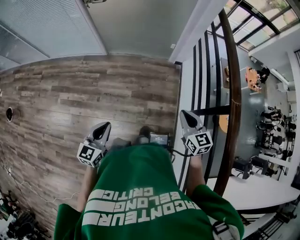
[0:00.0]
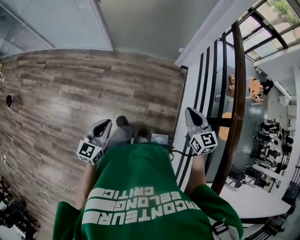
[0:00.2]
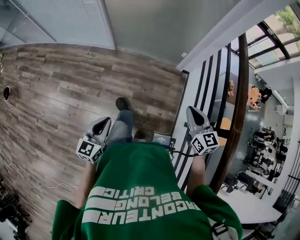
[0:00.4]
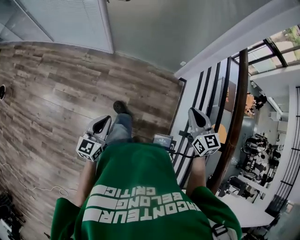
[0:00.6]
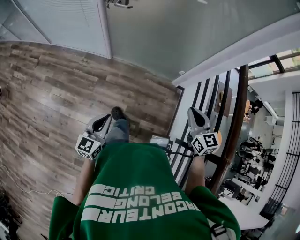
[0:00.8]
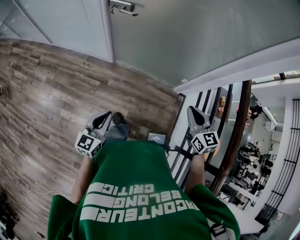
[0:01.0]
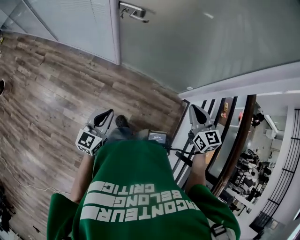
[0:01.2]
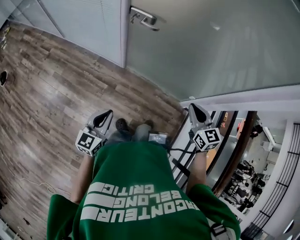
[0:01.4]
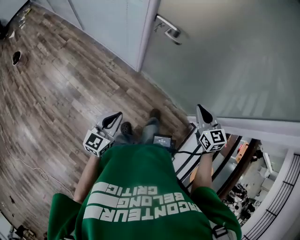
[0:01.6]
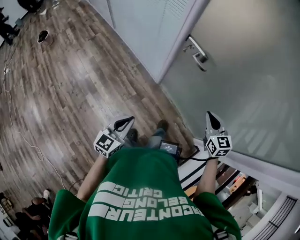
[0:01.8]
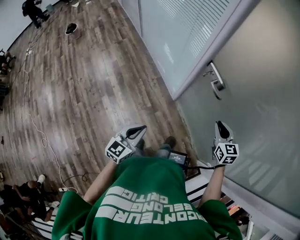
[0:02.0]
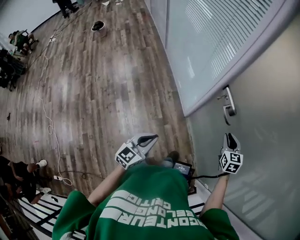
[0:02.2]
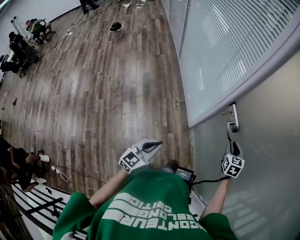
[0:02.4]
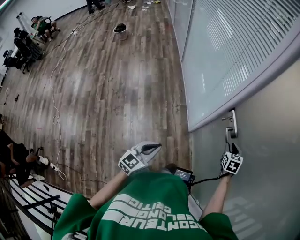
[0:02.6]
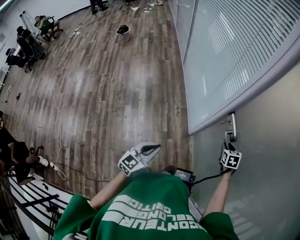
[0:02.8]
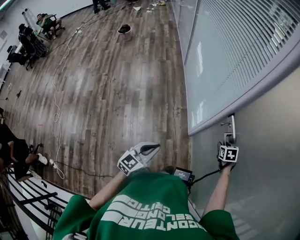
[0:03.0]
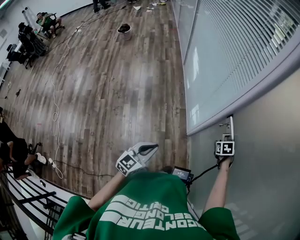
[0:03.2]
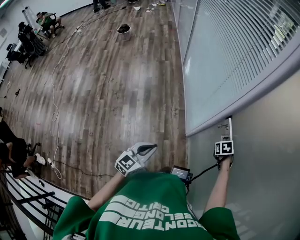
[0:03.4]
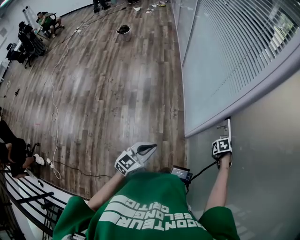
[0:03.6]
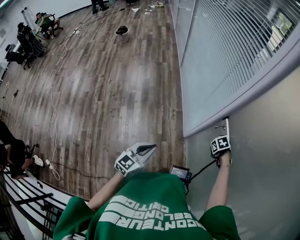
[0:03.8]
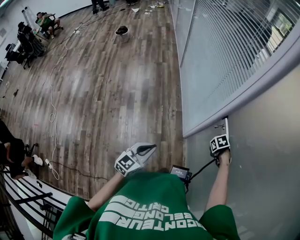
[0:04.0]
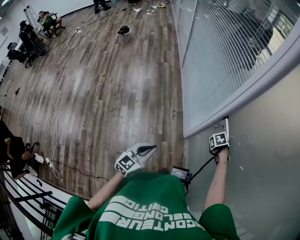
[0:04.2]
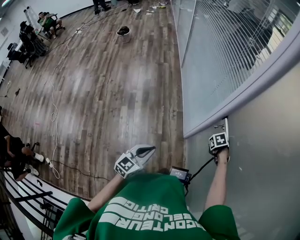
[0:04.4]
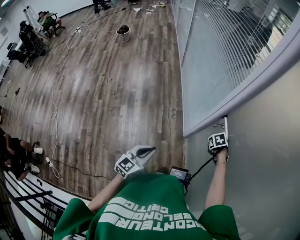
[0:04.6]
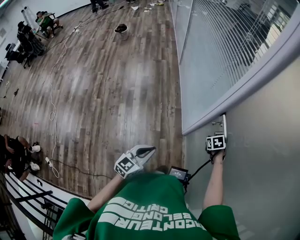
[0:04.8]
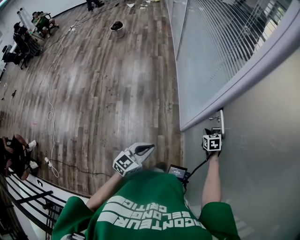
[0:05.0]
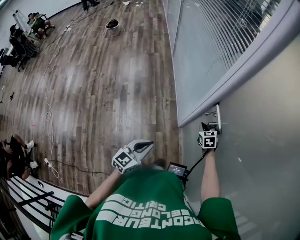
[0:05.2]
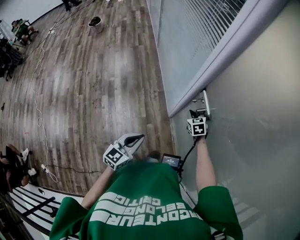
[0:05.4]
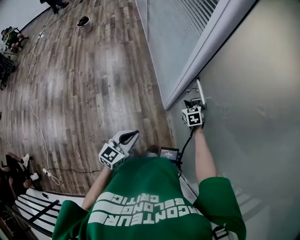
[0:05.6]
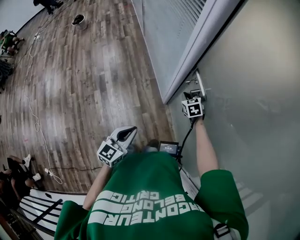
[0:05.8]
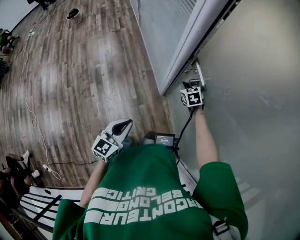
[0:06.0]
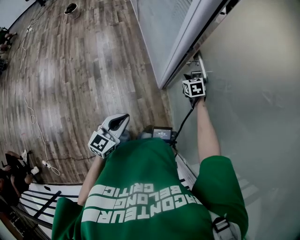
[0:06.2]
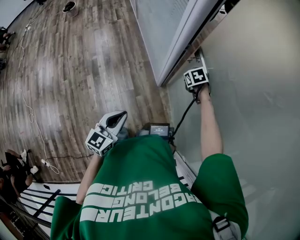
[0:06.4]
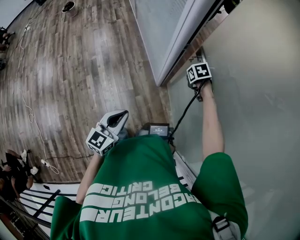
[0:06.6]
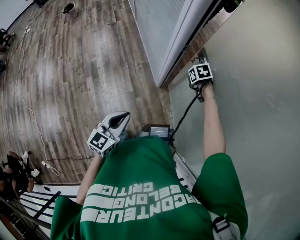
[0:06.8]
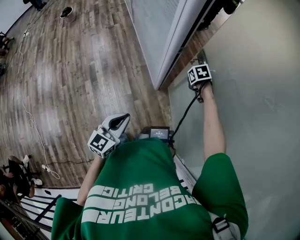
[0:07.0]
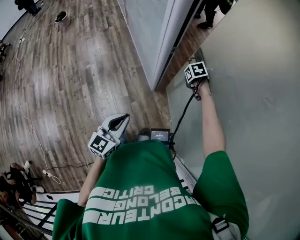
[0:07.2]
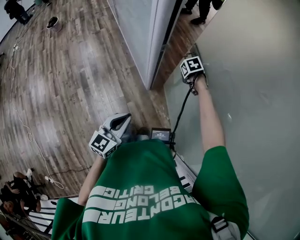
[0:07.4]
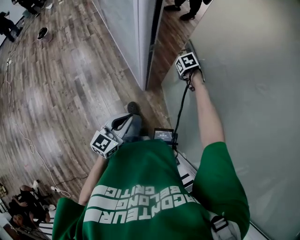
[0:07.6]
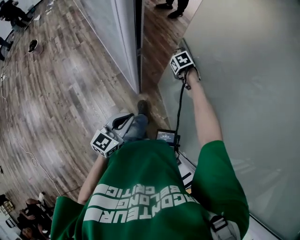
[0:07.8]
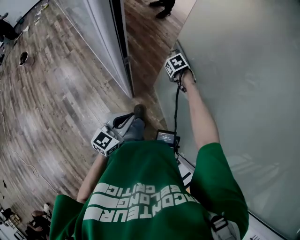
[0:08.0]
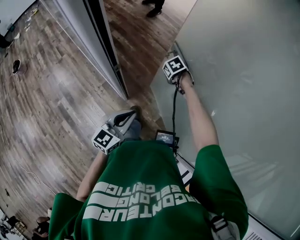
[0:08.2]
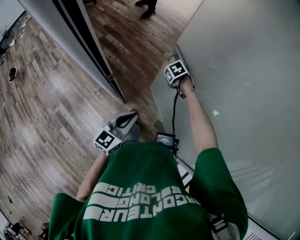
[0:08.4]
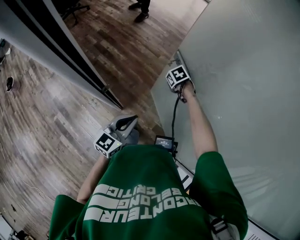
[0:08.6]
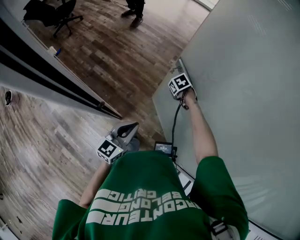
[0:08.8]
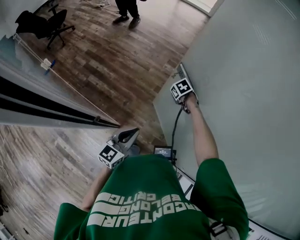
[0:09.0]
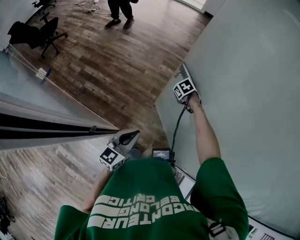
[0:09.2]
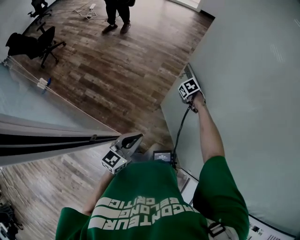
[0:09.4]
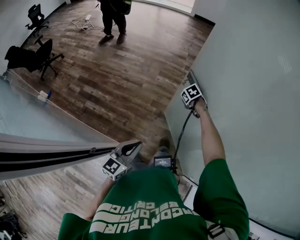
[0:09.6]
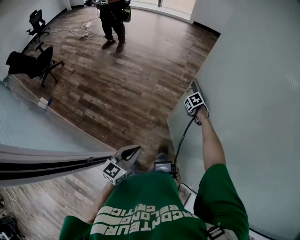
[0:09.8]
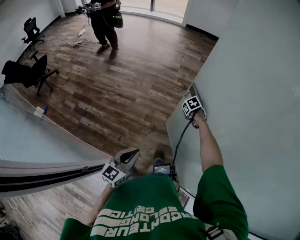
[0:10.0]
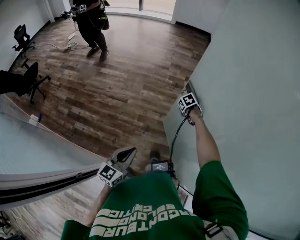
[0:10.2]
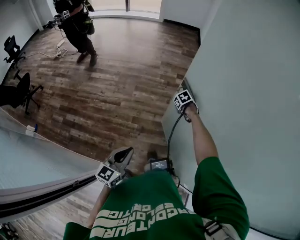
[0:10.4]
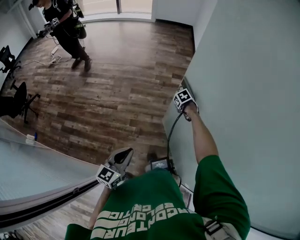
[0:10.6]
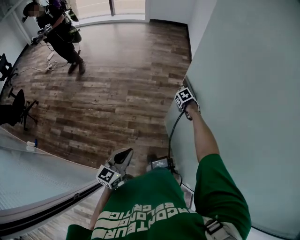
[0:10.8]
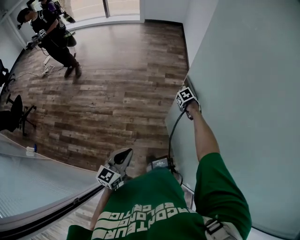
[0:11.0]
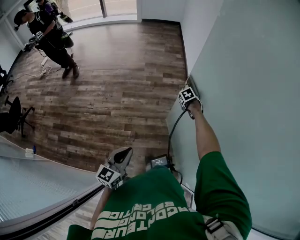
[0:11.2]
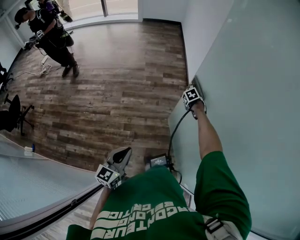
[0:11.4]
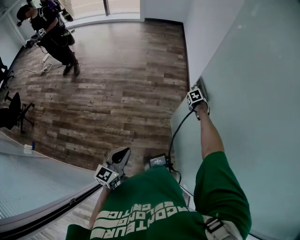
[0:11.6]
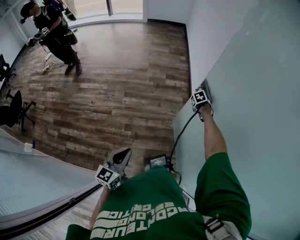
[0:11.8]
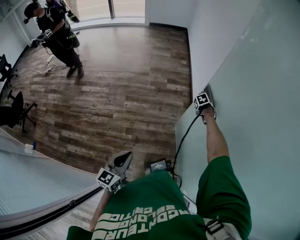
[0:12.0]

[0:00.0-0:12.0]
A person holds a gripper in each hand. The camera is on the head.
0:00.0 to 0:01.6: The left gripper shifts by about 40 cm, and rotates about 30 degrees. Meanwhile the right gripper shifts by approximately 60 cm, and turns by some 30 degrees.
0:01.6 to 0:03.0: The left gripper changes place by approximately 10 cm, and turns by approximately 30 degrees. The right gripper shifts by some 40 cm, tilts its fingers about 40 degrees downward, and opens.
0:03.0 to 0:04.4: The right gripper changes place by roughly 5 cm, changes its angle by some 20 degrees, and closes up.
0:04.4 to 0:06.0: The left gripper shifts by approximately 5 cm, while the right gripper moves about 5 cm, and points its fingers about 30 degrees further upward.
0:06.0 to 0:07.6: The right gripper ends up approximately 15 cm from where it was, and changes its angle by about 30 degrees. The left gripper ends up about 10 cm from where it was.
0:07.6 to 0:09.0: The left gripper shifts by about 25 cm, and changes its angle by some 30 degrees. The right gripper changes place by some 25 cm, and turns by roughly 20 degrees.
0:09.0 to 0:10.4: The right gripper shifts by some 30 cm, and rotates approximately 30 degrees; the left gripper shifts by about 20 cm.
0:10.4 to 0:12.0: The left gripper moves about 10 cm, while the right gripper shifts by about 25 cm, and changes its angle by about 20 degrees.

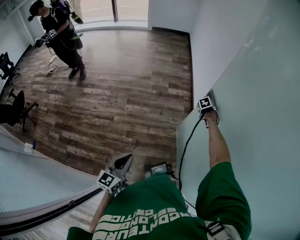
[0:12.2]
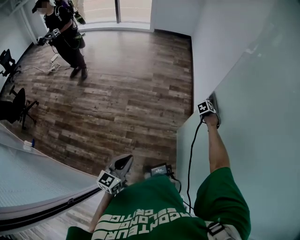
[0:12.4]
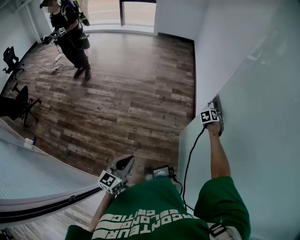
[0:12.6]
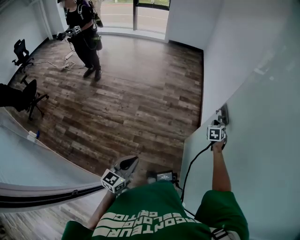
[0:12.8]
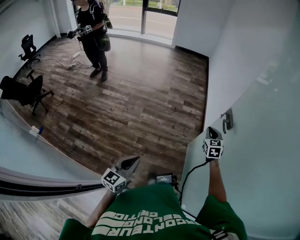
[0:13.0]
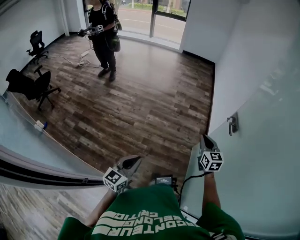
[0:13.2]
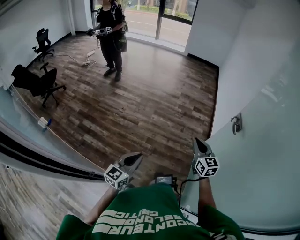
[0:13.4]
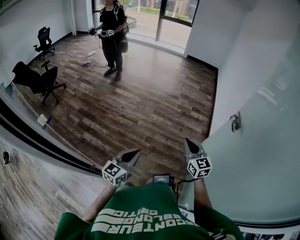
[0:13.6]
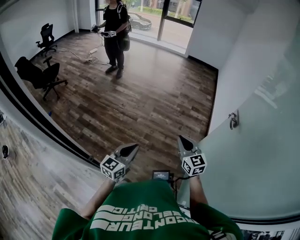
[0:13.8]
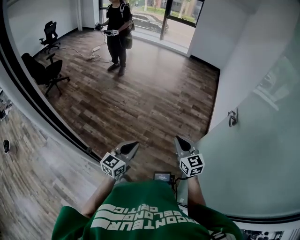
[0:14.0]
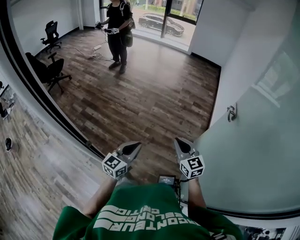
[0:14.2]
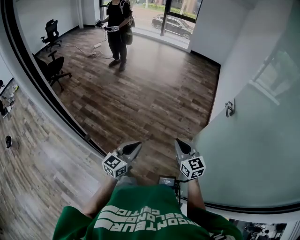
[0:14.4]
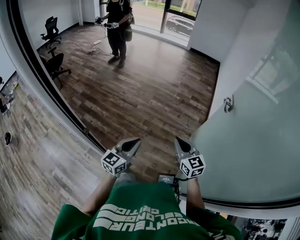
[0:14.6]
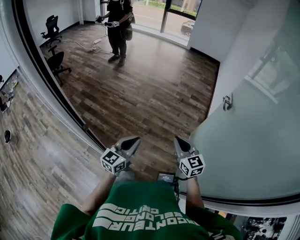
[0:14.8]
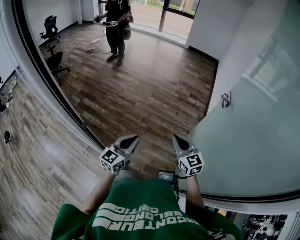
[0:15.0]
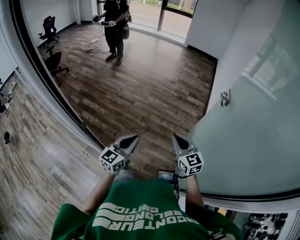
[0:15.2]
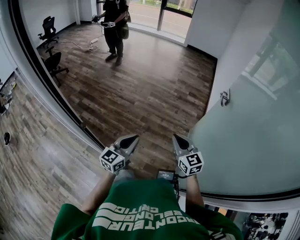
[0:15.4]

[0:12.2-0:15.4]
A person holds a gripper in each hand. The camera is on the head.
0:12.2 to 0:13.8: The left gripper ends up approximately 20 cm from where it was; the right gripper moves some 60 cm, angles its fingers upward, by about 70 degrees, and opens, then closes again.
0:13.8 to 0:15.4: The two grippers go roughly 15 cm backward and to the right.

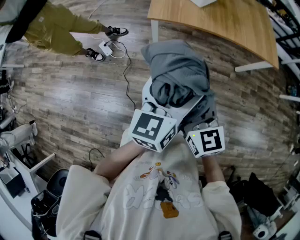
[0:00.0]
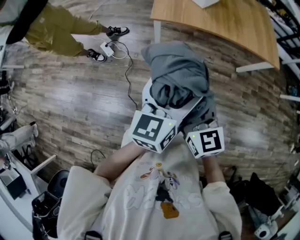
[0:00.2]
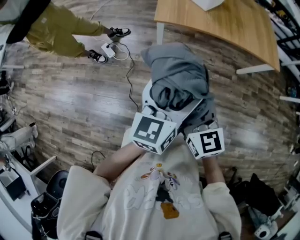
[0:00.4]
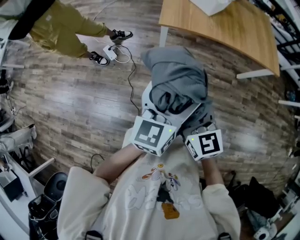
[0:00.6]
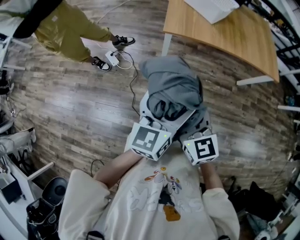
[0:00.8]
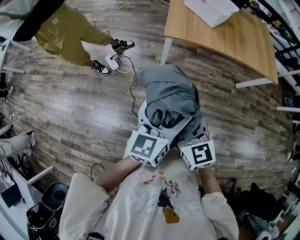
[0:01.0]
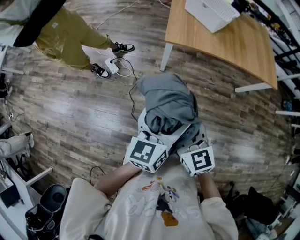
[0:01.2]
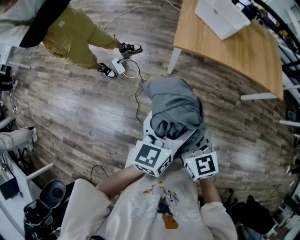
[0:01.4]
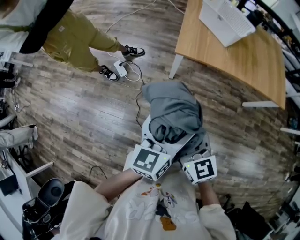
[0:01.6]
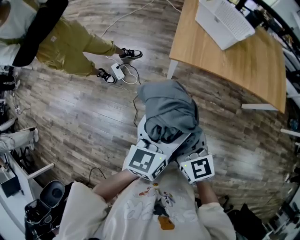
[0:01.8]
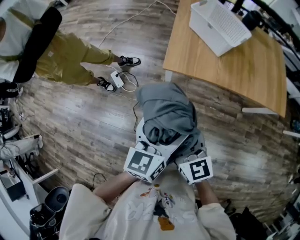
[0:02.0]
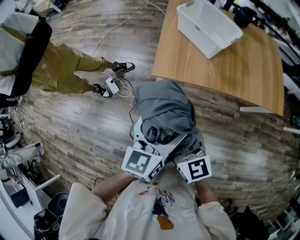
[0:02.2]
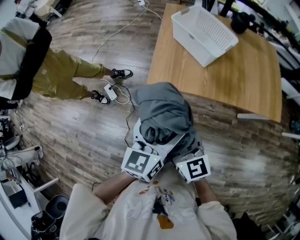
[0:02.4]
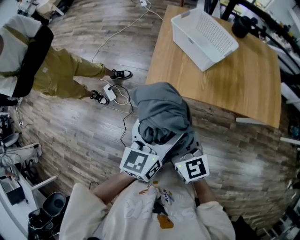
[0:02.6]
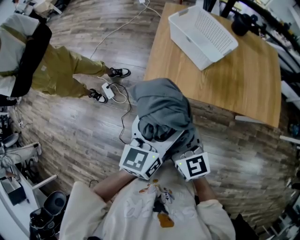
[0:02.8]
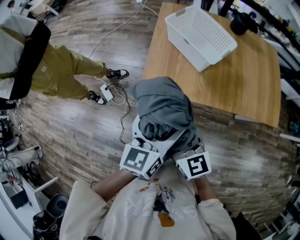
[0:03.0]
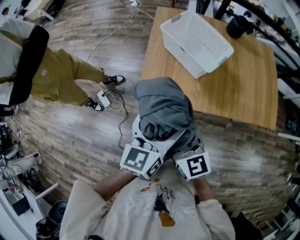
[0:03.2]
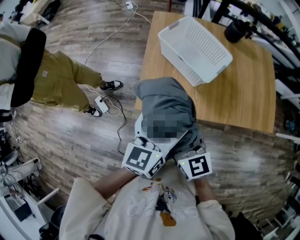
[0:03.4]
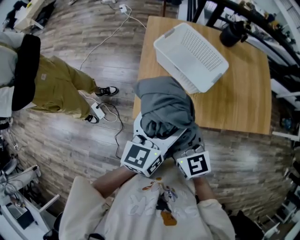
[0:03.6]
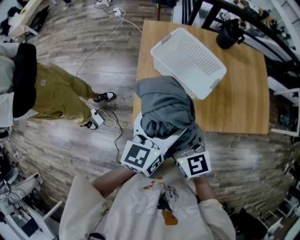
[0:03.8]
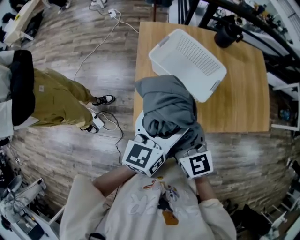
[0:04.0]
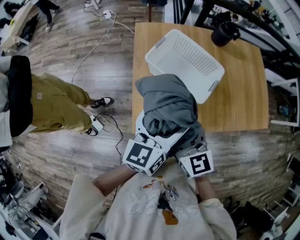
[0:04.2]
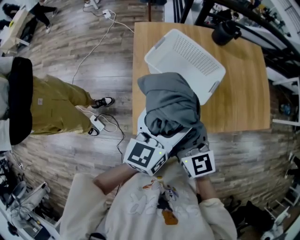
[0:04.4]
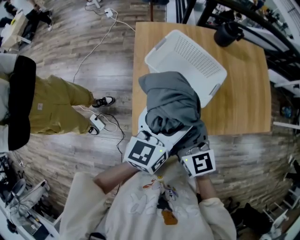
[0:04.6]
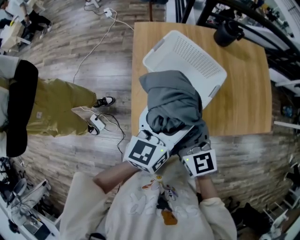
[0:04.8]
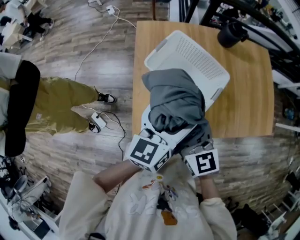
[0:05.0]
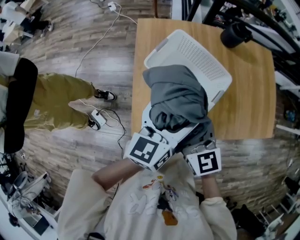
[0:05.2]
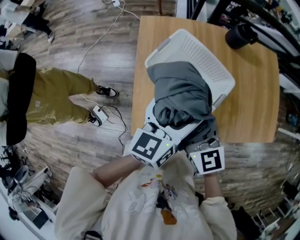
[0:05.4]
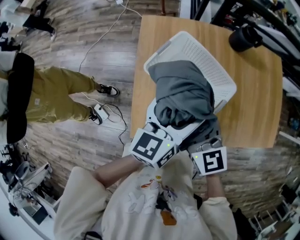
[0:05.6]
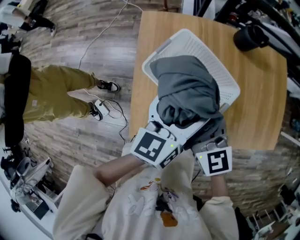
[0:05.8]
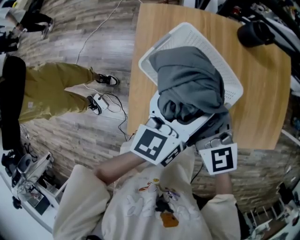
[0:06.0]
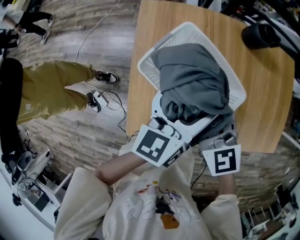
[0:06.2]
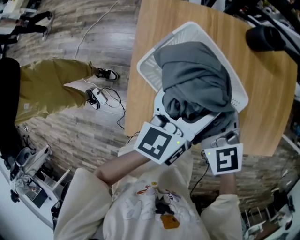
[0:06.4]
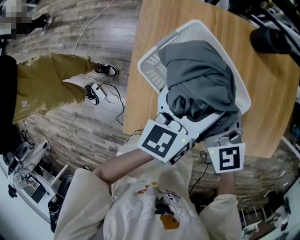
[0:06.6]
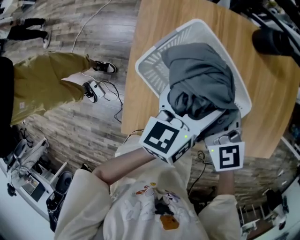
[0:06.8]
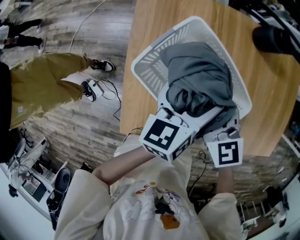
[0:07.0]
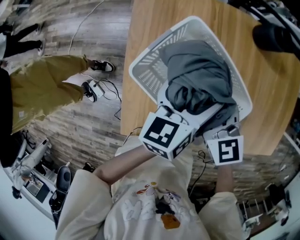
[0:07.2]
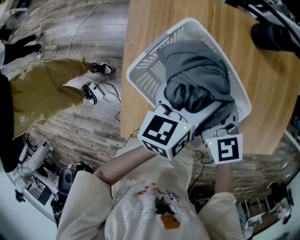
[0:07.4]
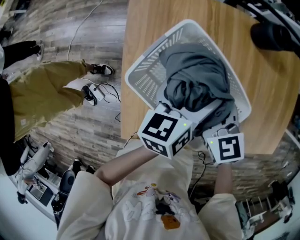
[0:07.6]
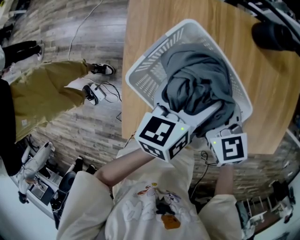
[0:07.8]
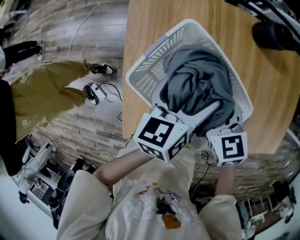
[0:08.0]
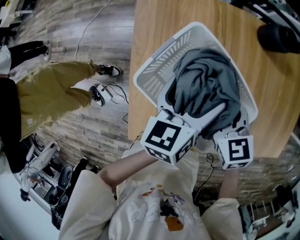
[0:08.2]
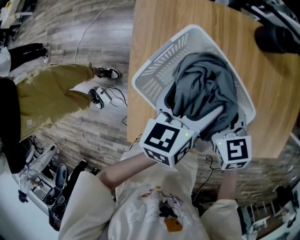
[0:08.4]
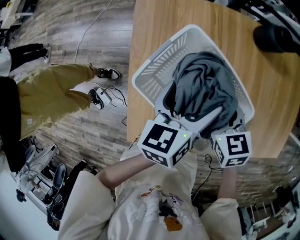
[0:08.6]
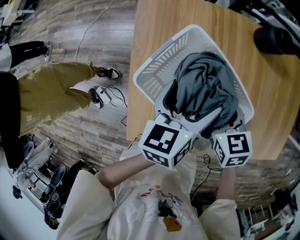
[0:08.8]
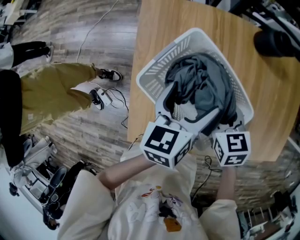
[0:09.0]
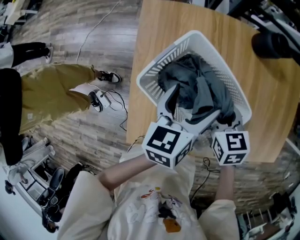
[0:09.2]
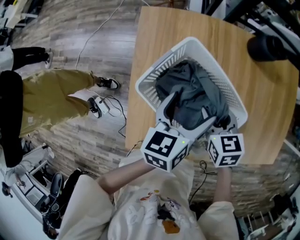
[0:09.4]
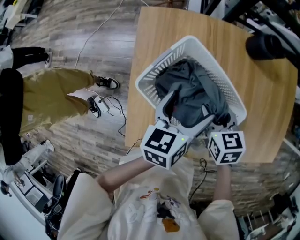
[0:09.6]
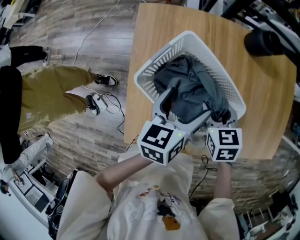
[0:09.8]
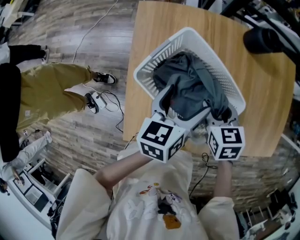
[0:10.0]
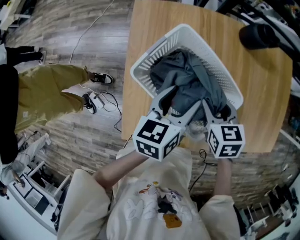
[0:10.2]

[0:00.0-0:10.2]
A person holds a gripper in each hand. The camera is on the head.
0:00.0 to 0:01.4: Both grippers travel together to the left, some 10 cm.
0:01.4 to 0:03.0: Both grippers move forward and to the right, approximately 35 cm.
0:03.0 to 0:04.4: The two grippers go some 25 cm forward.
0:04.4 to 0:05.8: The left gripper goes roughly 15 cm forward. Meanwhile the right gripper shifts approximately 15 cm forward and to the right.
0:05.8 to 0:07.2: Both grippers move downward and forward, some 15 cm.
0:07.2 to 0:08.8: The right gripper changes place by about 5 cm, and rotates approximately 20 degrees.
0:08.8 to 0:10.2: The left gripper closes its fingers.
